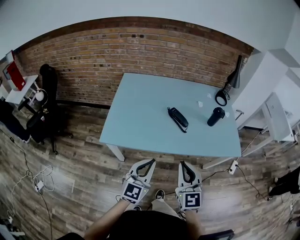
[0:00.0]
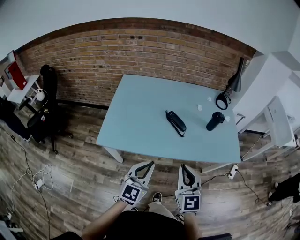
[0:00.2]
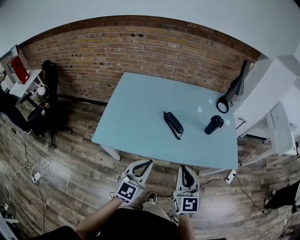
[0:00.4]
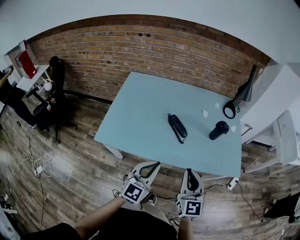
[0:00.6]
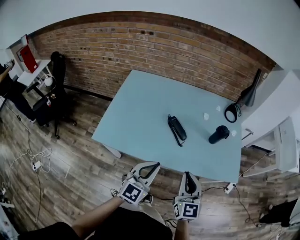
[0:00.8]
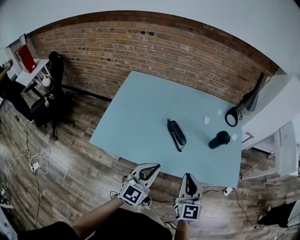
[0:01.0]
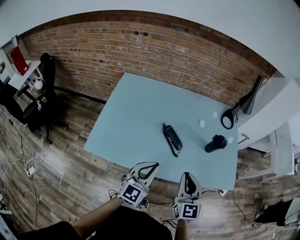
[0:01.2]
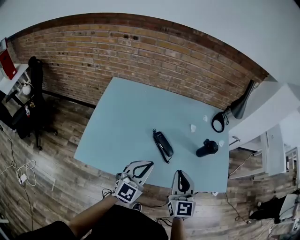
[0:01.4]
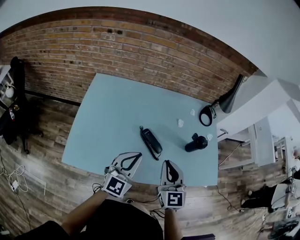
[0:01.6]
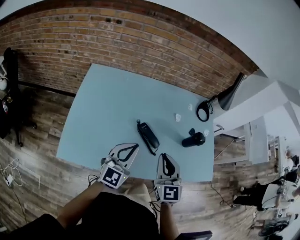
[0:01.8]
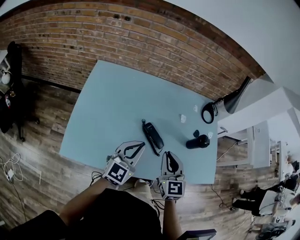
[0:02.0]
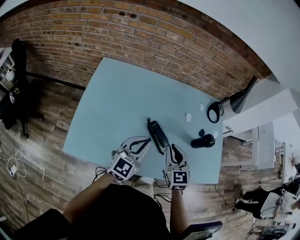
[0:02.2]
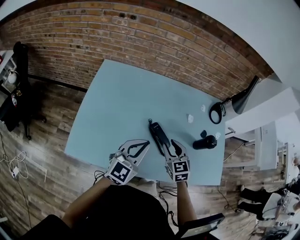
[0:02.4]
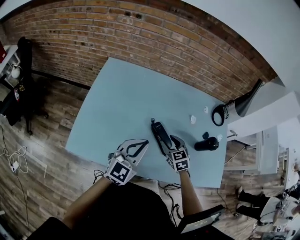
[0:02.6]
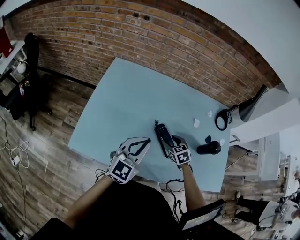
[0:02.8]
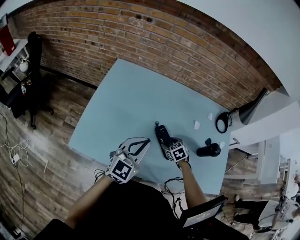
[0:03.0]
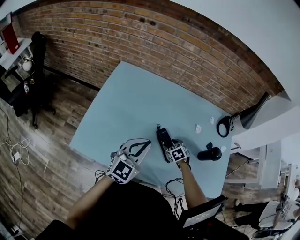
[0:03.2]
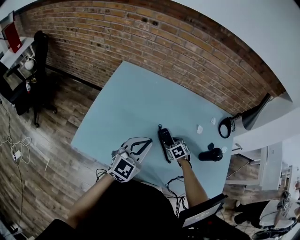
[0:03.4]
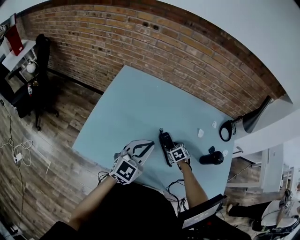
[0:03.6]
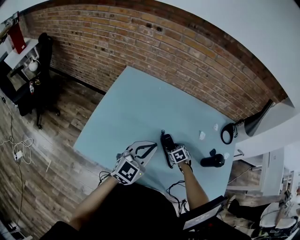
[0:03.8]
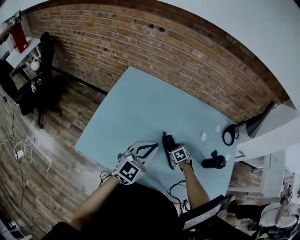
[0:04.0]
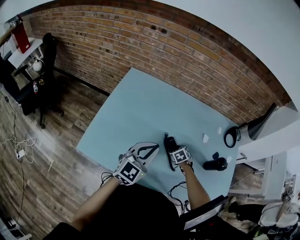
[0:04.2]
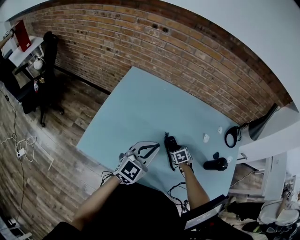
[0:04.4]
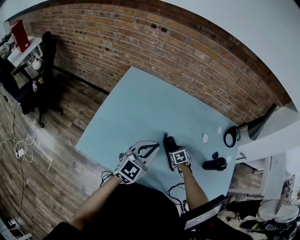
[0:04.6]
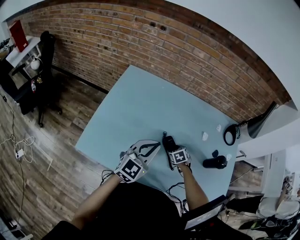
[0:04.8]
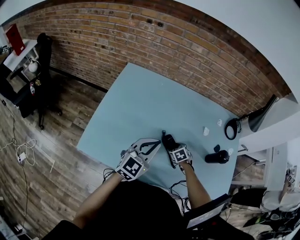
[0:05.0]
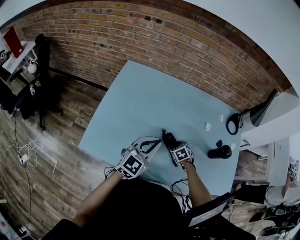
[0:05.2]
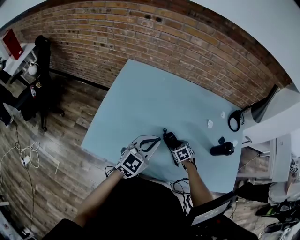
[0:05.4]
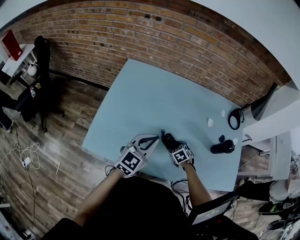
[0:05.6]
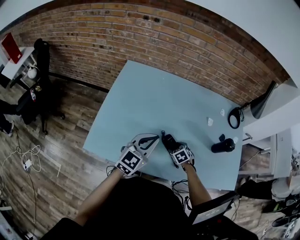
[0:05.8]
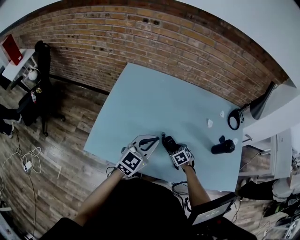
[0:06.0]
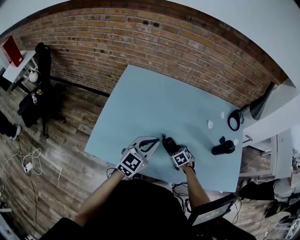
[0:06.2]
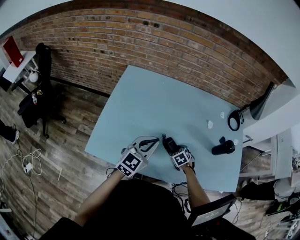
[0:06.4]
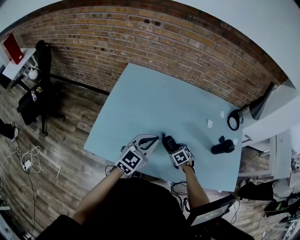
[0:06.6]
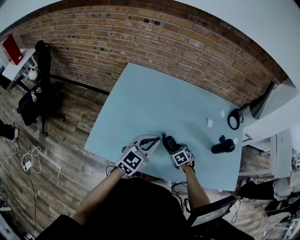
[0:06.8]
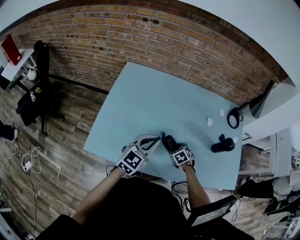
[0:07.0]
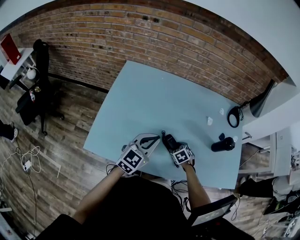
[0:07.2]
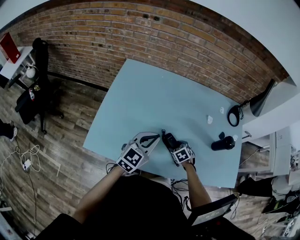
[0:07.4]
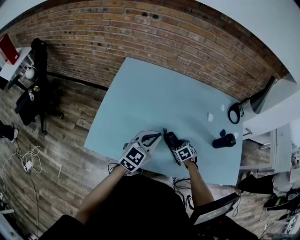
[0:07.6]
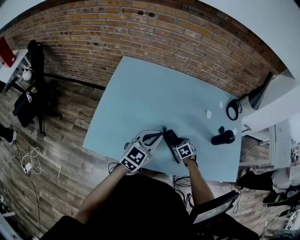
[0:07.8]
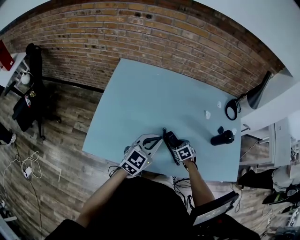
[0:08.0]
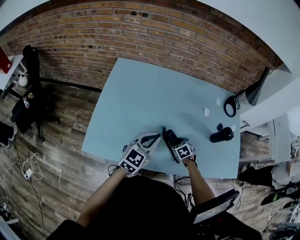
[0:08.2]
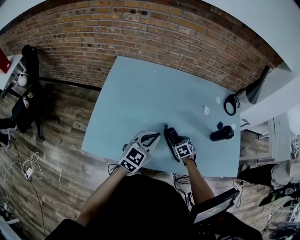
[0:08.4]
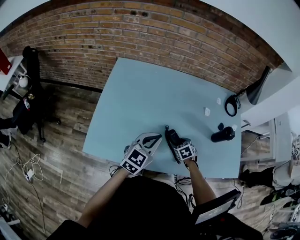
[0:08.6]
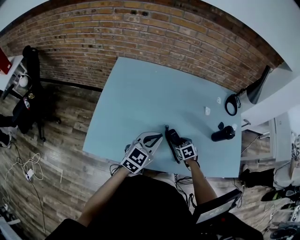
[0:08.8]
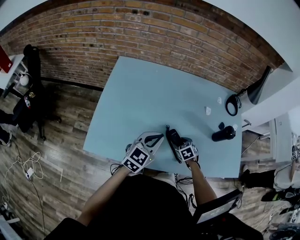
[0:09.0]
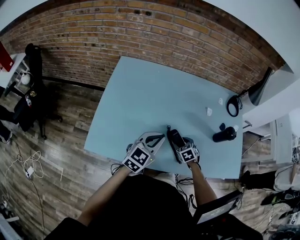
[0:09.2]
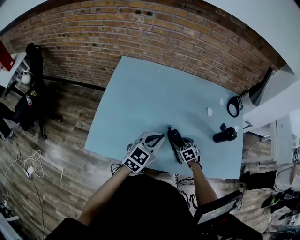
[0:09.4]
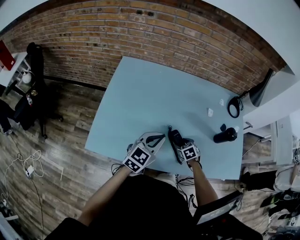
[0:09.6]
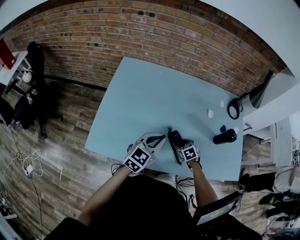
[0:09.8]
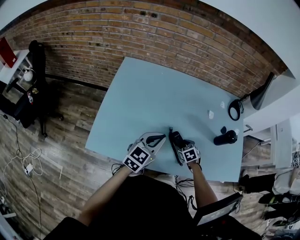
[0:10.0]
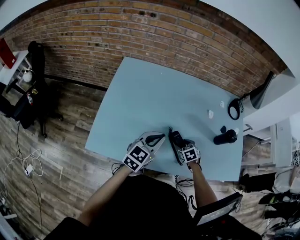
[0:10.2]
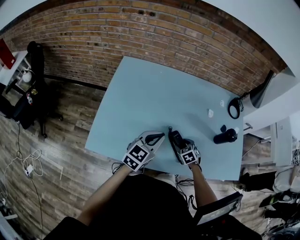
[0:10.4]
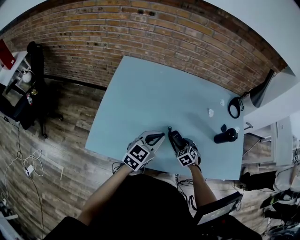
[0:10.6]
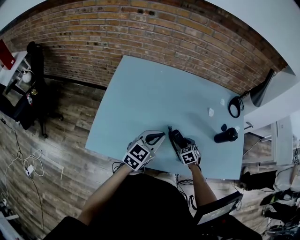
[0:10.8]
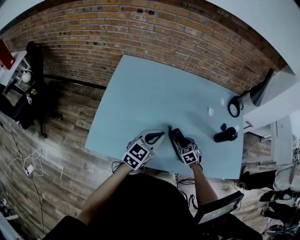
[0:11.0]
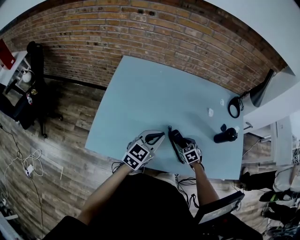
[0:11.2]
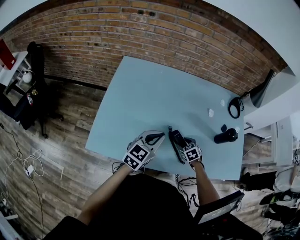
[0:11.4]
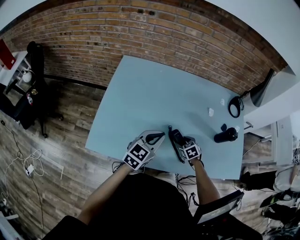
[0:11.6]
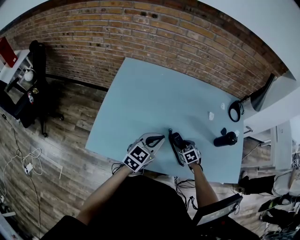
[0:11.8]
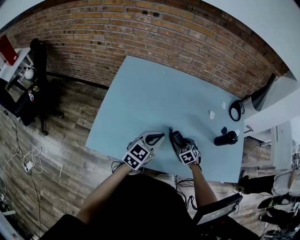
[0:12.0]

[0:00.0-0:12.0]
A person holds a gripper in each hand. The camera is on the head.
0.0 to 1.6 s: The two grippers go about 25 cm forward.
1.6 to 3.0 s: The right gripper moves downward and forward, roughly 35 cm, angles its fingers downward, by roughly 50 degrees, and opens its fingers; the left gripper shifts by approximately 5 cm.
3.0 to 4.4 s: The right gripper moves downward, roughly 5 cm.
4.4 to 6.0 s: The right gripper heads backward, covering approximately 10 cm.
6.0 to 7.6 s: Both grippers stay put.
7.6 to 10.4 s: The grippers stay close to where they were, moving slightly.
10.4 to 12.0 s: The right gripper closes and opens again.

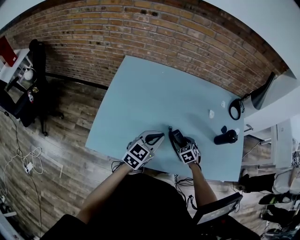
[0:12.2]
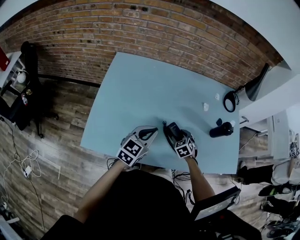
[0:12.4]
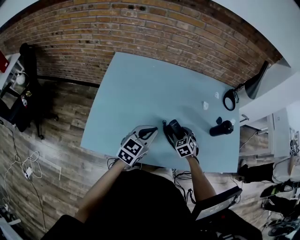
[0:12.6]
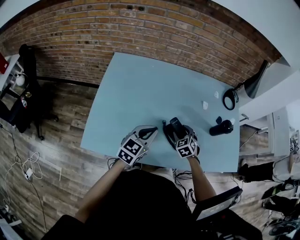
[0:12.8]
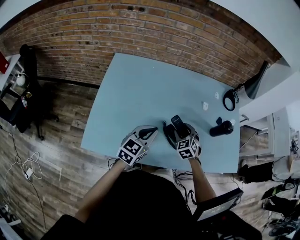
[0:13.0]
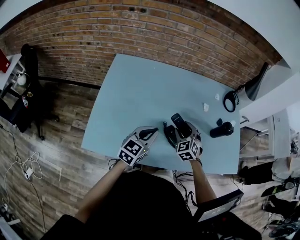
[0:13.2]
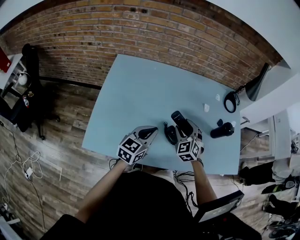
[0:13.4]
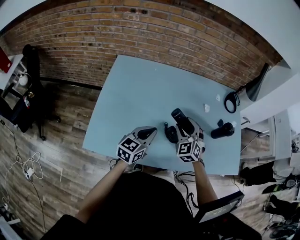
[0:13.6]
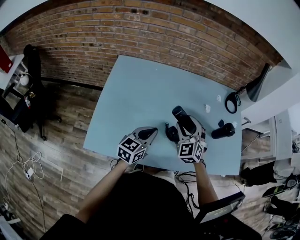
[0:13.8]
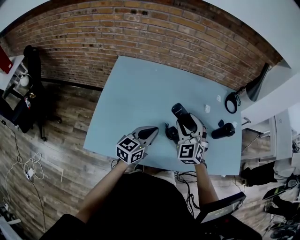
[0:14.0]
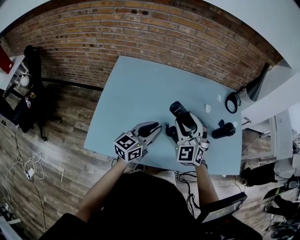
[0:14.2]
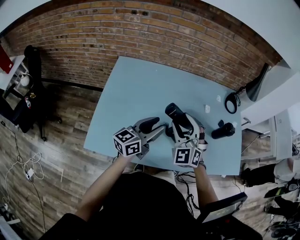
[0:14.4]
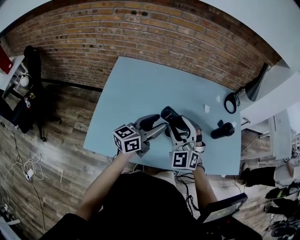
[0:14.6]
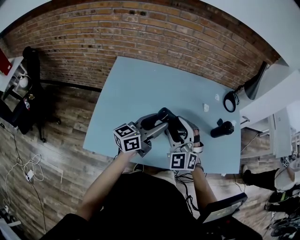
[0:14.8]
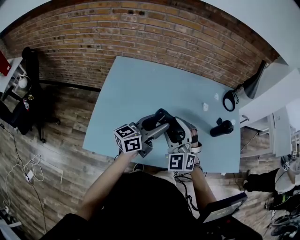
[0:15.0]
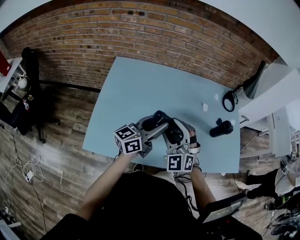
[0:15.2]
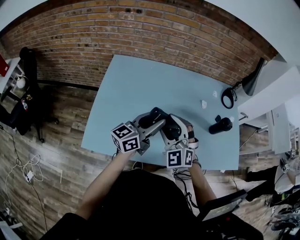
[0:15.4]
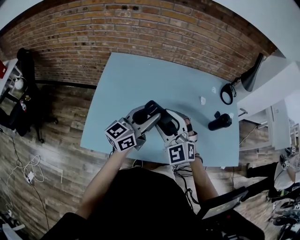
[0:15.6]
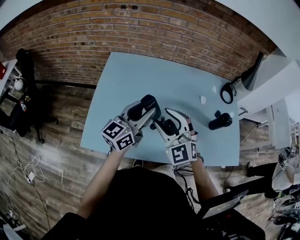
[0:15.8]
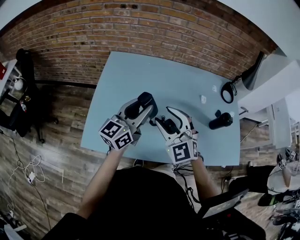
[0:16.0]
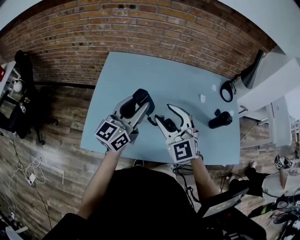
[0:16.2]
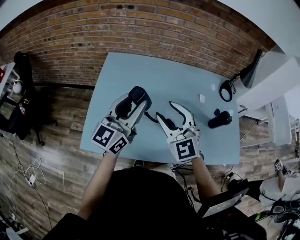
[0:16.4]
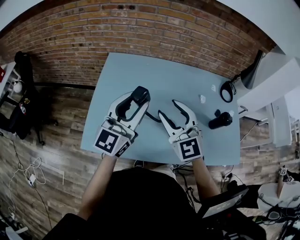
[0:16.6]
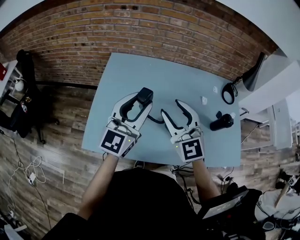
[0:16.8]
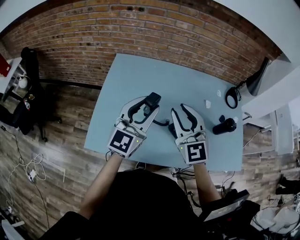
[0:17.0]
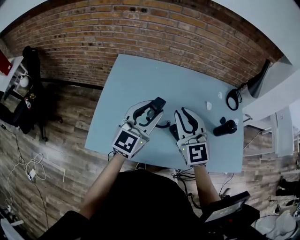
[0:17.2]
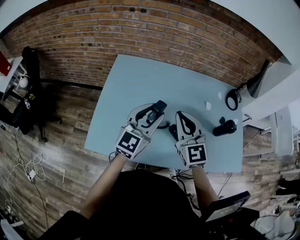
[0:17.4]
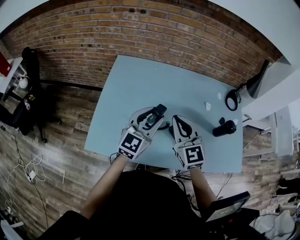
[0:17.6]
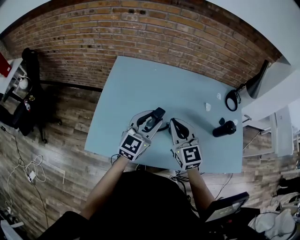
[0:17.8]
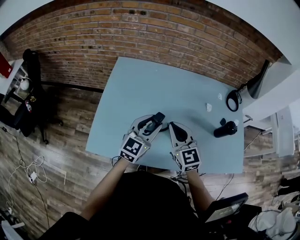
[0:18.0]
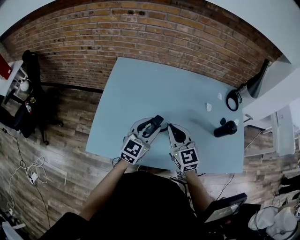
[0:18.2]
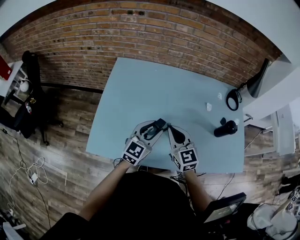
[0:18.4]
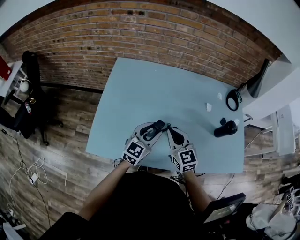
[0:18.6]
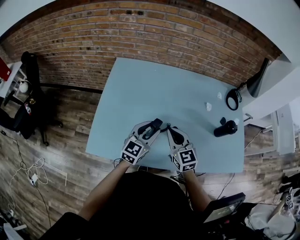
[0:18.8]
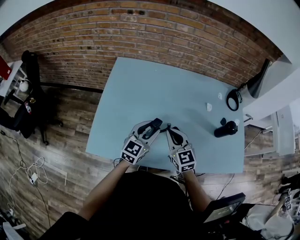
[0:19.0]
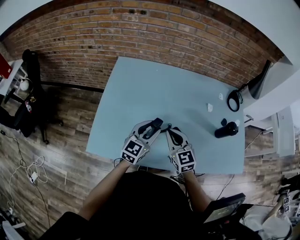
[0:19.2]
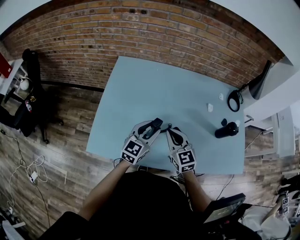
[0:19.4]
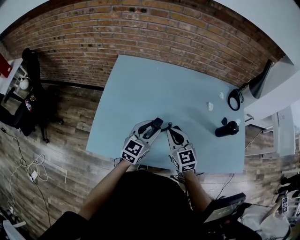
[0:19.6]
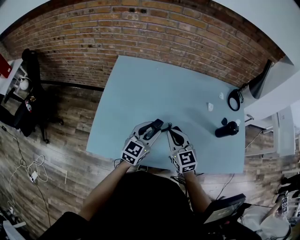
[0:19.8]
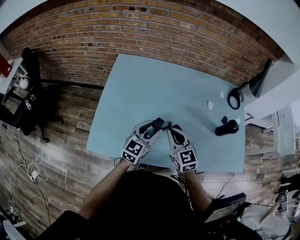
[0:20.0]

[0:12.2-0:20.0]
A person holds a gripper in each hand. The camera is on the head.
12.2 to 13.8 s: The right gripper moves upward, approximately 20 cm, and angles its fingers upward, by approximately 30 degrees.
13.8 to 15.4 s: The left gripper moves upward, some 10 cm, changes its angle by roughly 30 degrees, and opens. The right gripper heads backward, to the left and upward, covering approximately 10 cm.
15.4 to 16.8 s: The right gripper moves upward, some 10 cm, and rotates about 30 degrees; the left gripper goes some 10 cm upward and to the left, and changes its angle by some 40 degrees.
16.8 to 18.4 s: Both grippers move downward, about 15 cm. The right gripper closes its fingers.
18.4 to 20.0 s: The grippers move only a little.

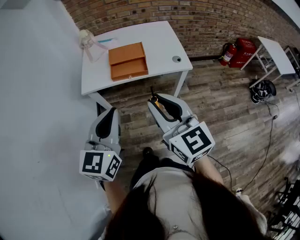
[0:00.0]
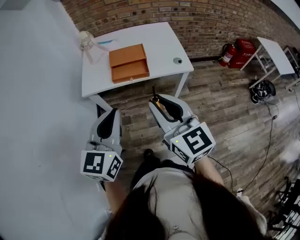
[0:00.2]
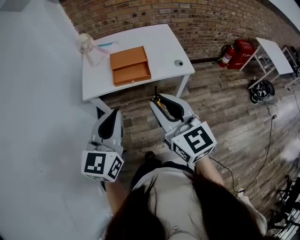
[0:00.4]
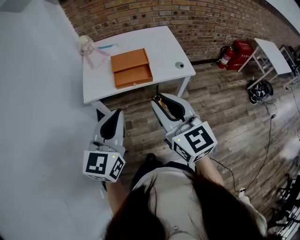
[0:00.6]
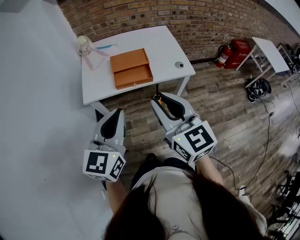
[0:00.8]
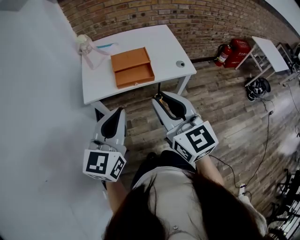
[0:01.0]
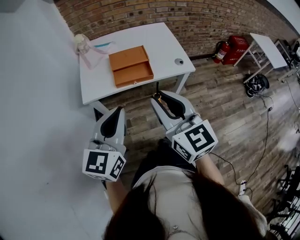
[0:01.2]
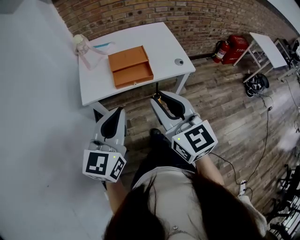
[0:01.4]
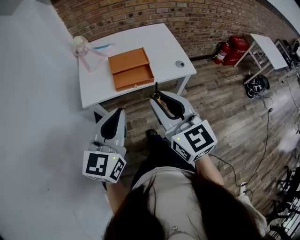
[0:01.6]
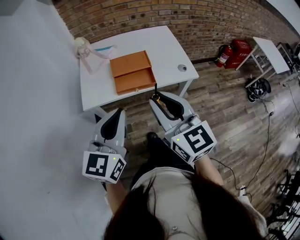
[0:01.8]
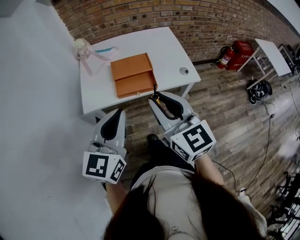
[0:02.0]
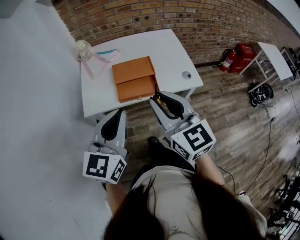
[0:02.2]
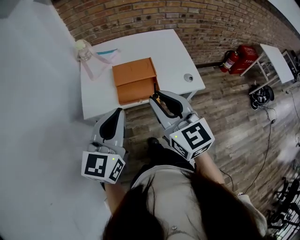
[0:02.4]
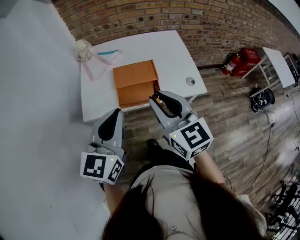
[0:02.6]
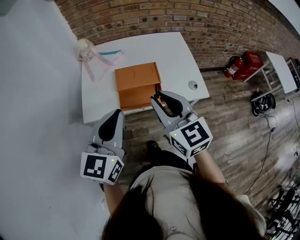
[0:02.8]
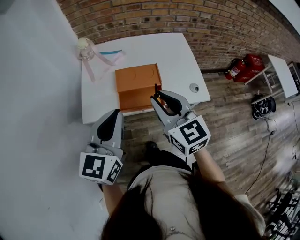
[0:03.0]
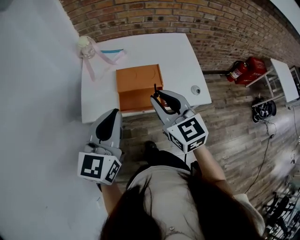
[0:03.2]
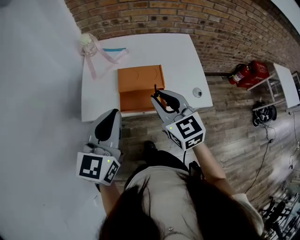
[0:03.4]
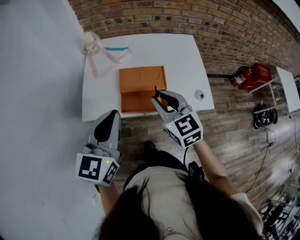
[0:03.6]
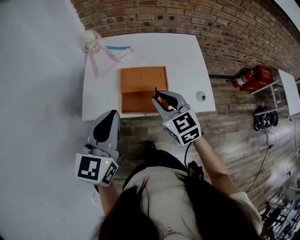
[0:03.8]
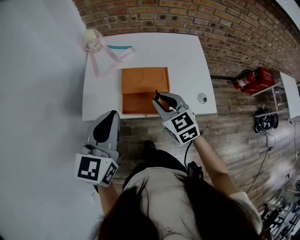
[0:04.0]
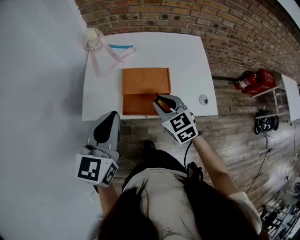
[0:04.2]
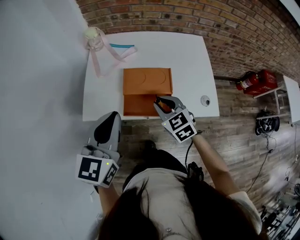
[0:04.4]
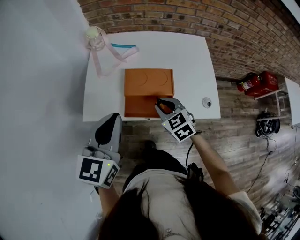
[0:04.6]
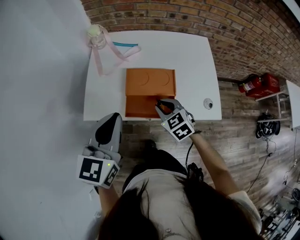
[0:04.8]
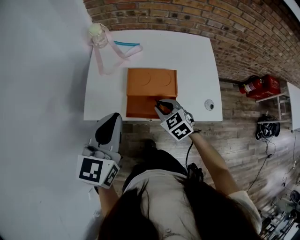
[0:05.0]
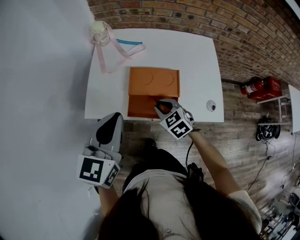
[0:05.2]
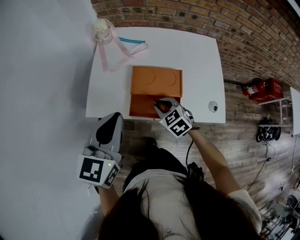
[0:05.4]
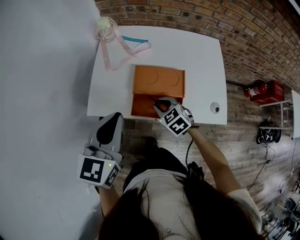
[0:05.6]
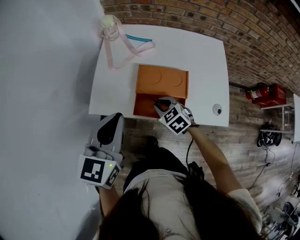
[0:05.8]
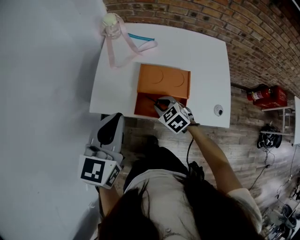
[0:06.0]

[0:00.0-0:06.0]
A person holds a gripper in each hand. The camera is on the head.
0.0 to 1.6 s: The left gripper travels forward by about 10 cm. Meanwhile the right gripper heads forward and to the left, covering roughly 10 cm.
1.6 to 3.0 s: Both grippers travel together forward, roughly 15 cm.
3.0 to 4.4 s: The left gripper shifts some 5 cm forward, while the right gripper moves downward and forward, some 20 cm, and turns by about 30 degrees.
4.4 to 6.0 s: The right gripper goes approximately 10 cm downward and to the left, and rotates about 20 degrees.
